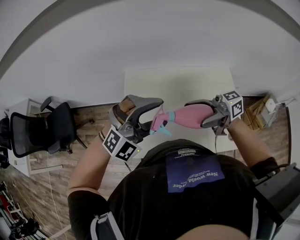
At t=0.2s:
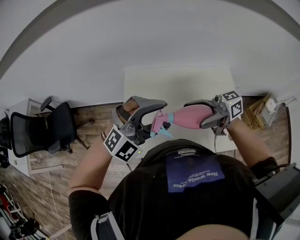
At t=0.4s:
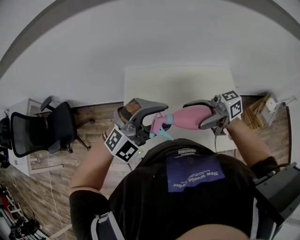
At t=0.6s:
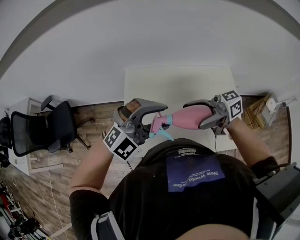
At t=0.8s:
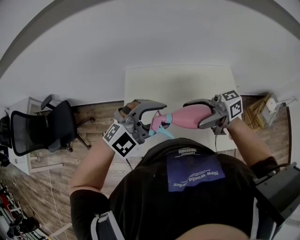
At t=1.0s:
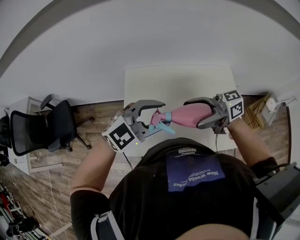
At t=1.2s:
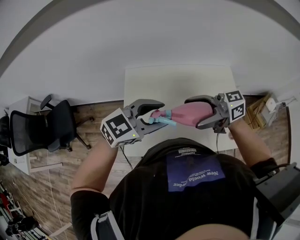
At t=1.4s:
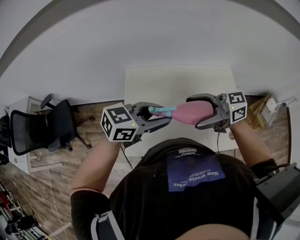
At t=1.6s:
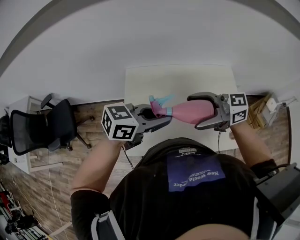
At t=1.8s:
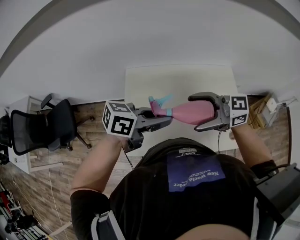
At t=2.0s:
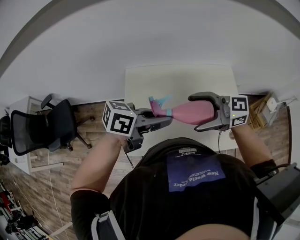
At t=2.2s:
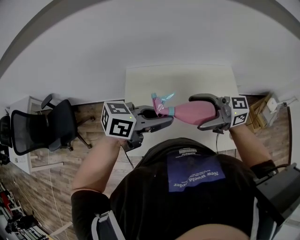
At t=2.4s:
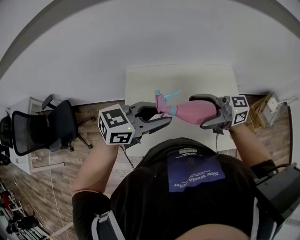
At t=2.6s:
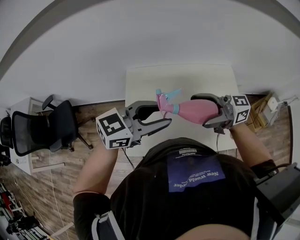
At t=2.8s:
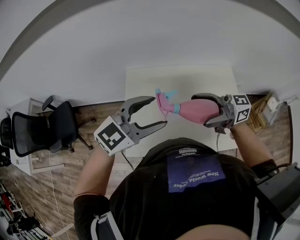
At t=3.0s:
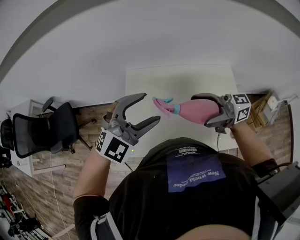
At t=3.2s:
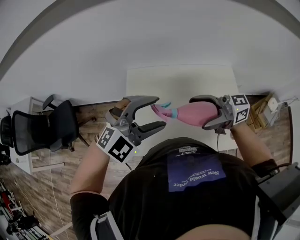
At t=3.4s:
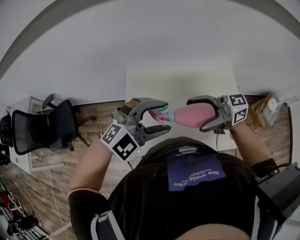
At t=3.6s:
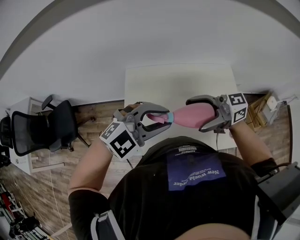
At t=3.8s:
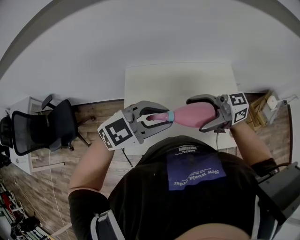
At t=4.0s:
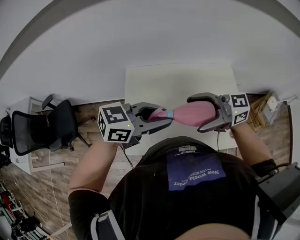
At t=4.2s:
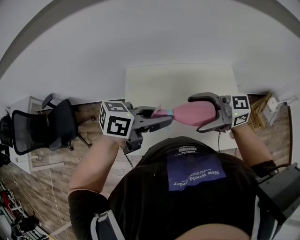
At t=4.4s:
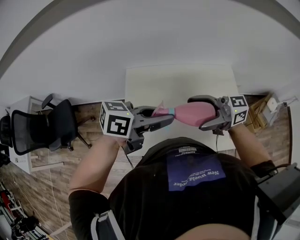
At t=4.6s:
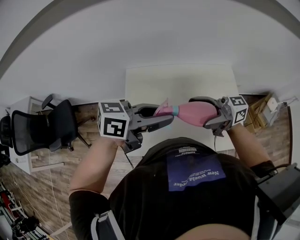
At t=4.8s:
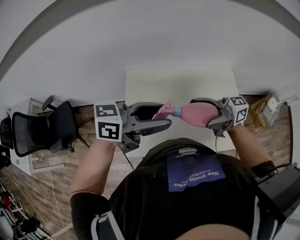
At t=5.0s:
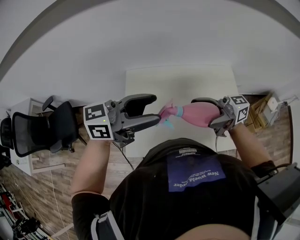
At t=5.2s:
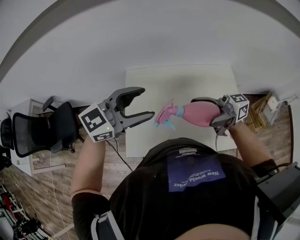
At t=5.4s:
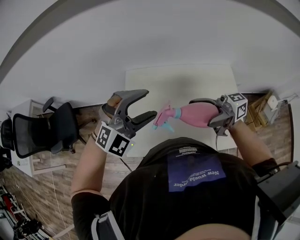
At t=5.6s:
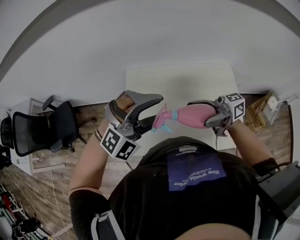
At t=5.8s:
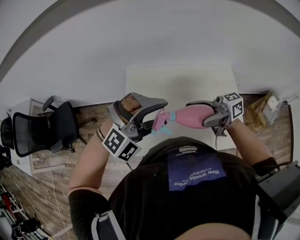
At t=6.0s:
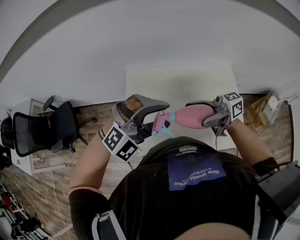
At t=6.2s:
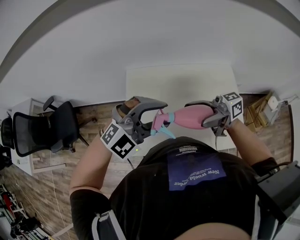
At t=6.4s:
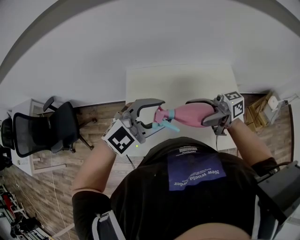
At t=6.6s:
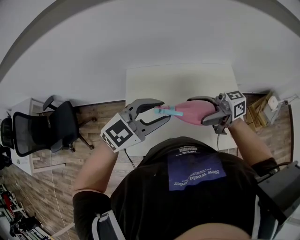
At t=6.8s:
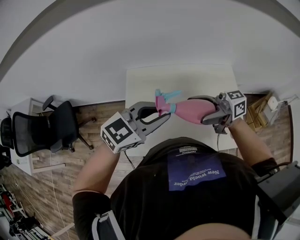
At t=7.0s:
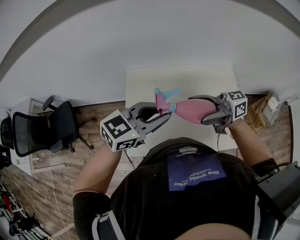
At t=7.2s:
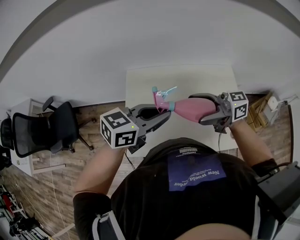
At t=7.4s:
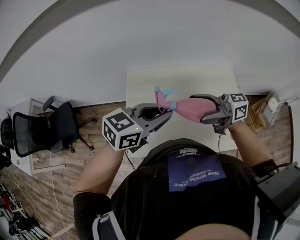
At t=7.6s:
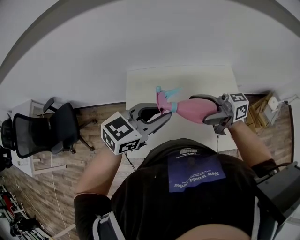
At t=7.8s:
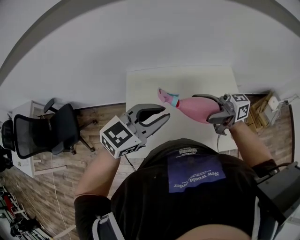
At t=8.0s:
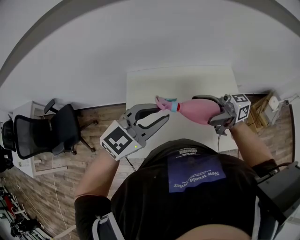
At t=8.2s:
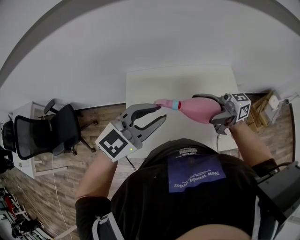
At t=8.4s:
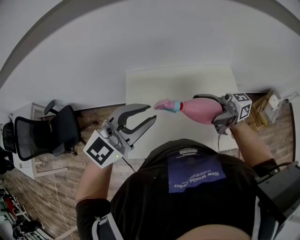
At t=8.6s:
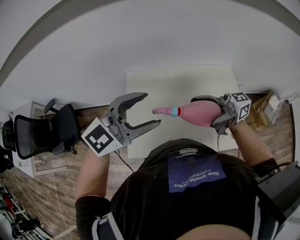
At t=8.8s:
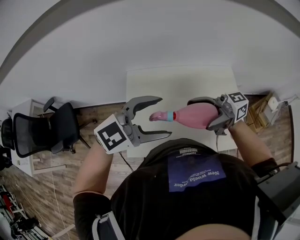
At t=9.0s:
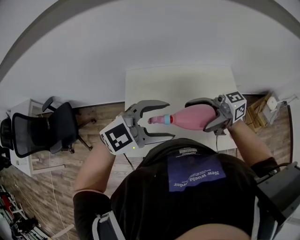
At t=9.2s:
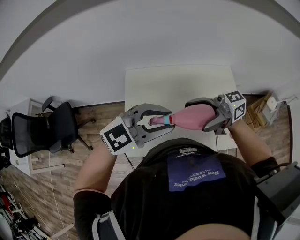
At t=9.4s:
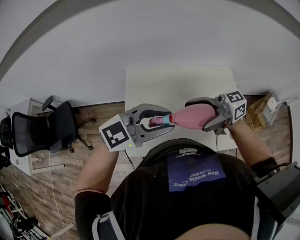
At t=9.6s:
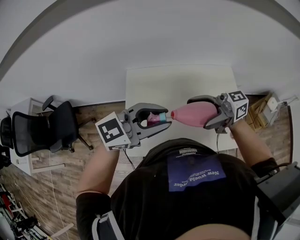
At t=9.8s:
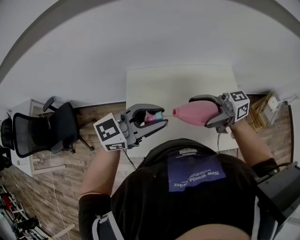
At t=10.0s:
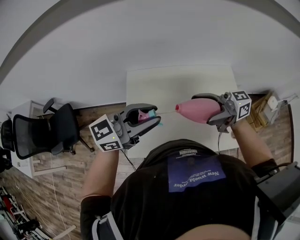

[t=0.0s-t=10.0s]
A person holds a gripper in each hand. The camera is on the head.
t=0.0s to t=1.4s: The left gripper rotates around the line of its fingers by approximately 80 degrees, counterclockwise from behind, and closes up.
t=1.4s to t=2.8s: The left gripper ends up roughly 5 cm from where it was, turns by roughly 30 degrees, and opens.
t=2.8s to t=4.2s: The left gripper twists some 50 degrees counterclockwise, seen from behind, and closes its fingers.
t=4.2s to t=5.8s: The right gripper turns by roughly 30 degrees; the left gripper rotates around the line of its fingers by roughly 100 degrees, clockwise from behind, and opens.
t=5.8s to t=7.2s: The left gripper twists about 90 degrees counterclockwise, seen from behind, and closes up.
t=7.2s to t=8.6s: The left gripper shifts roughly 5 cm upward, turns by approximately 30 degrees, and opens.
t=8.6s to t=10.0s: The left gripper turns by some 30 degrees, and closes up.

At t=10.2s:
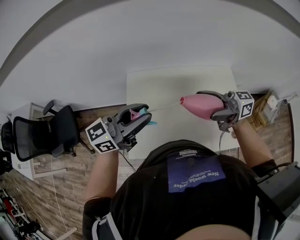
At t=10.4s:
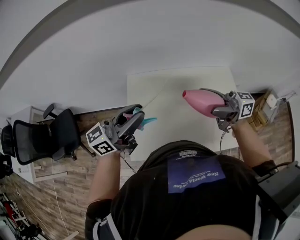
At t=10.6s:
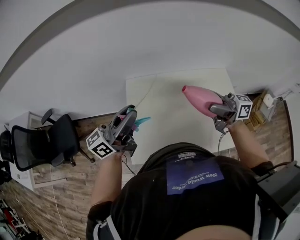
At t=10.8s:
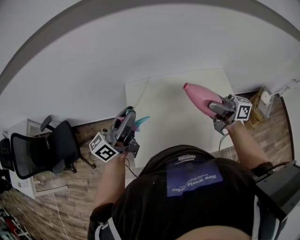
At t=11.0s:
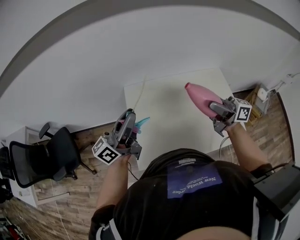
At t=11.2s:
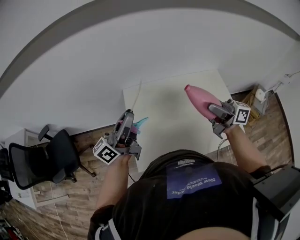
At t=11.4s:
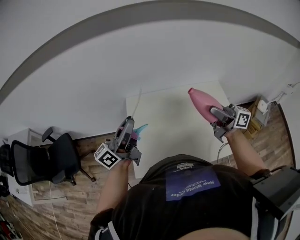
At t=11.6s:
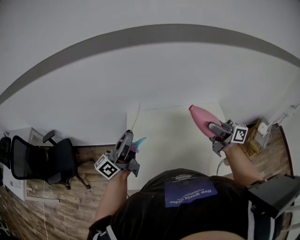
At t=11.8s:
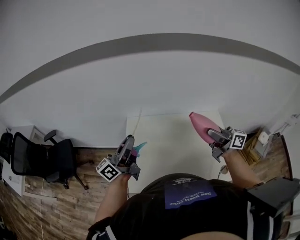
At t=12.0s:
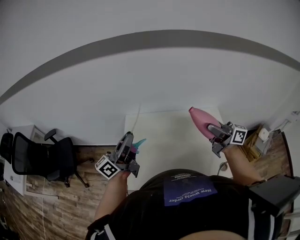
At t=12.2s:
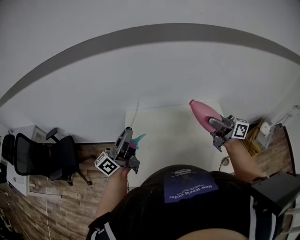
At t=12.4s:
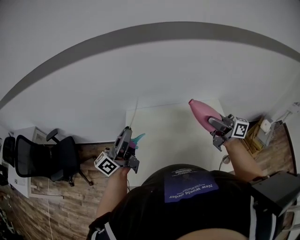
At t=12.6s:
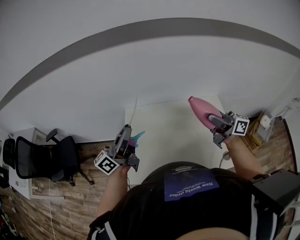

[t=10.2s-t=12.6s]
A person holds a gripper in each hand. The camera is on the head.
t=10.2s to t=11.4s: The left gripper changes place by approximately 10 cm, and turns by roughly 30 degrees. The right gripper changes its angle by roughly 30 degrees.
t=11.4s to t=12.6s: The grippers make only small movements.

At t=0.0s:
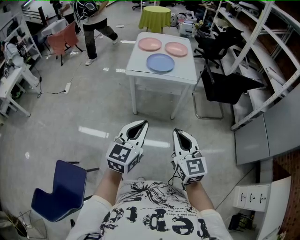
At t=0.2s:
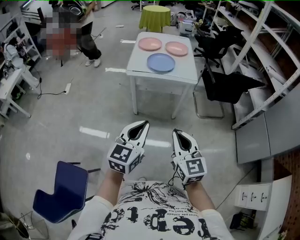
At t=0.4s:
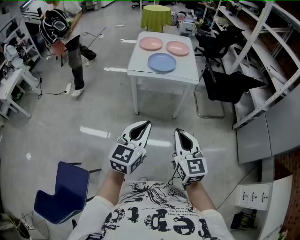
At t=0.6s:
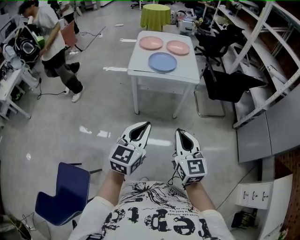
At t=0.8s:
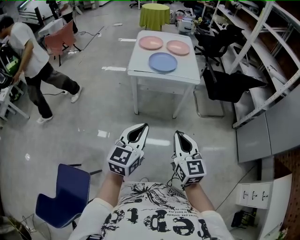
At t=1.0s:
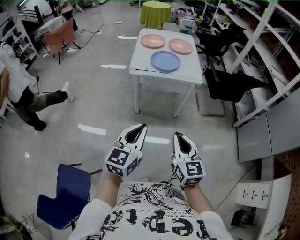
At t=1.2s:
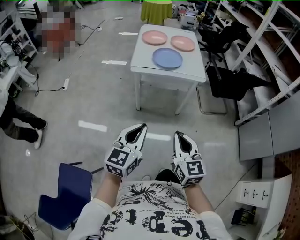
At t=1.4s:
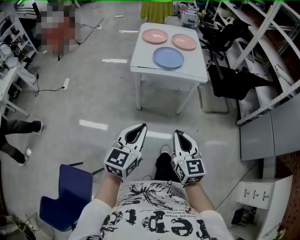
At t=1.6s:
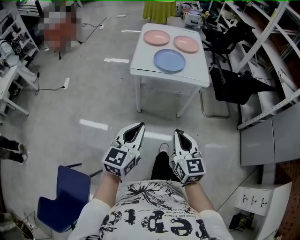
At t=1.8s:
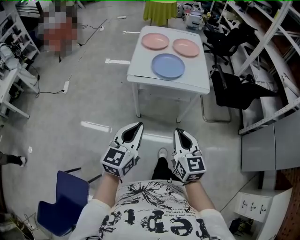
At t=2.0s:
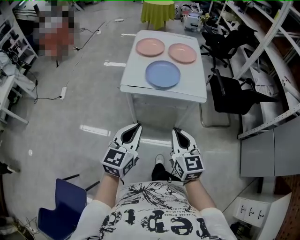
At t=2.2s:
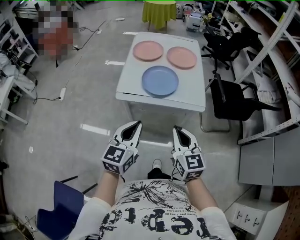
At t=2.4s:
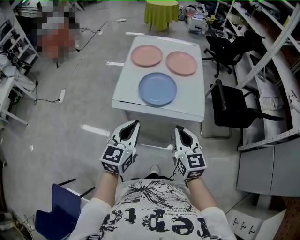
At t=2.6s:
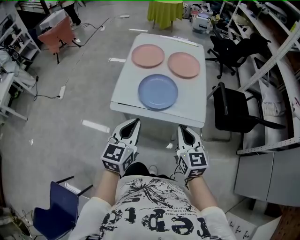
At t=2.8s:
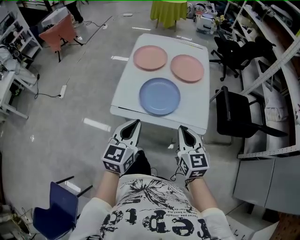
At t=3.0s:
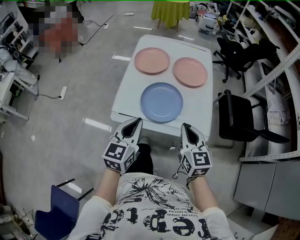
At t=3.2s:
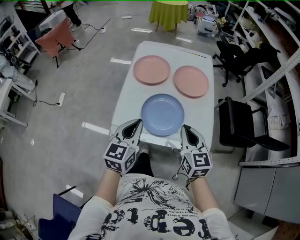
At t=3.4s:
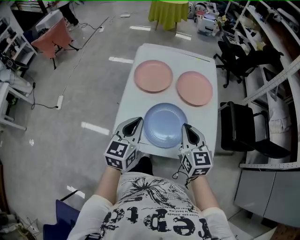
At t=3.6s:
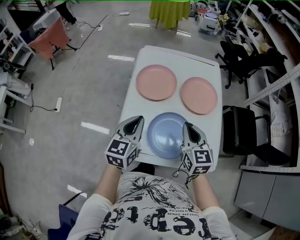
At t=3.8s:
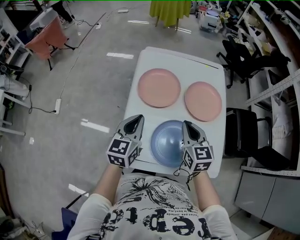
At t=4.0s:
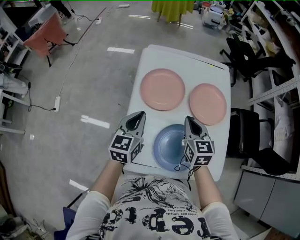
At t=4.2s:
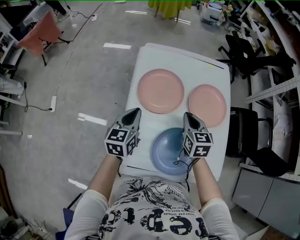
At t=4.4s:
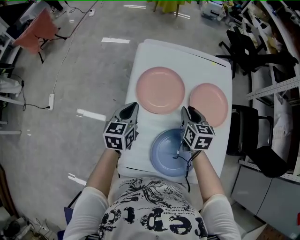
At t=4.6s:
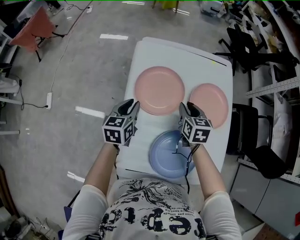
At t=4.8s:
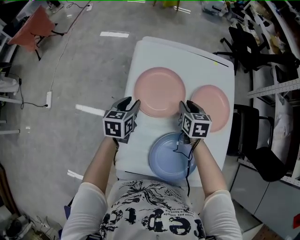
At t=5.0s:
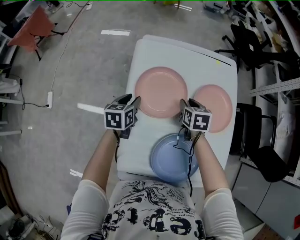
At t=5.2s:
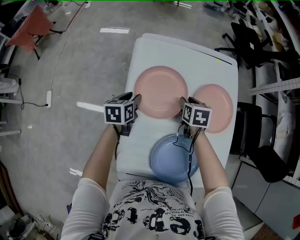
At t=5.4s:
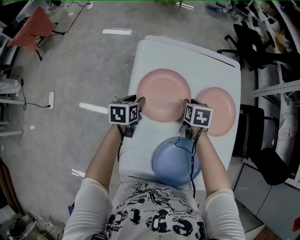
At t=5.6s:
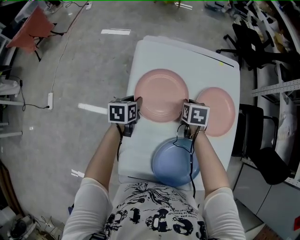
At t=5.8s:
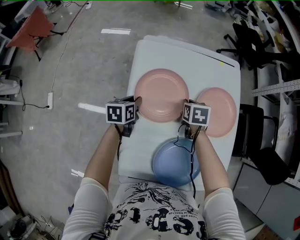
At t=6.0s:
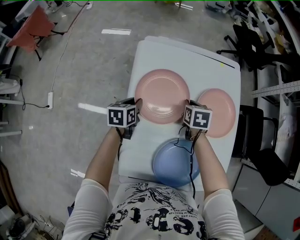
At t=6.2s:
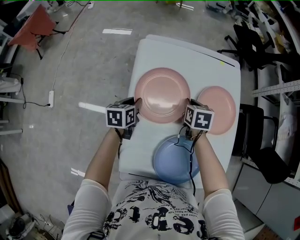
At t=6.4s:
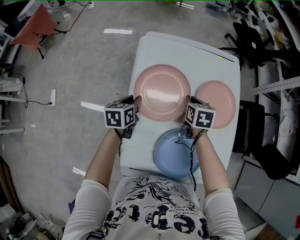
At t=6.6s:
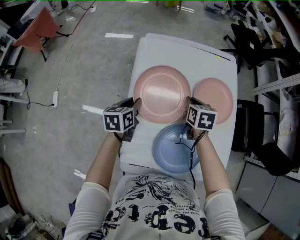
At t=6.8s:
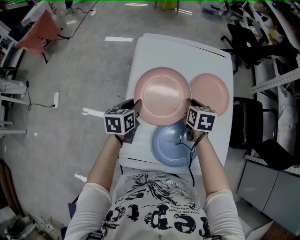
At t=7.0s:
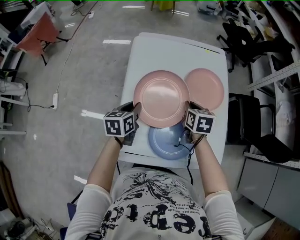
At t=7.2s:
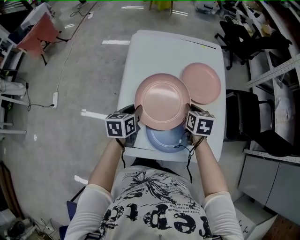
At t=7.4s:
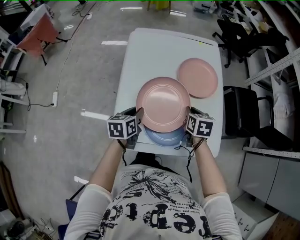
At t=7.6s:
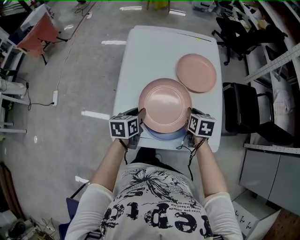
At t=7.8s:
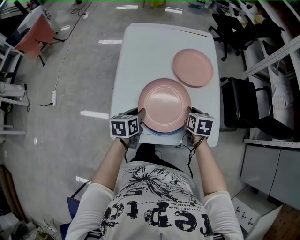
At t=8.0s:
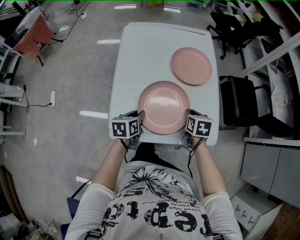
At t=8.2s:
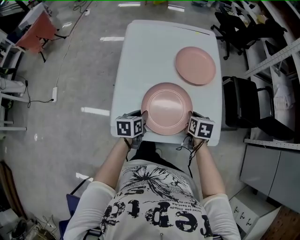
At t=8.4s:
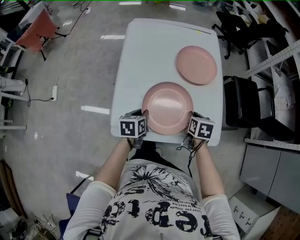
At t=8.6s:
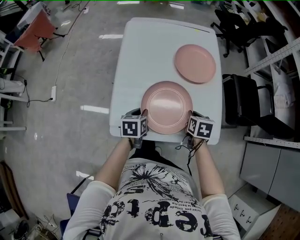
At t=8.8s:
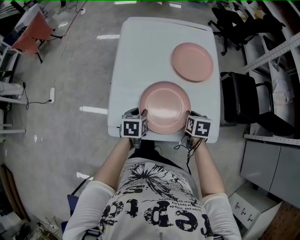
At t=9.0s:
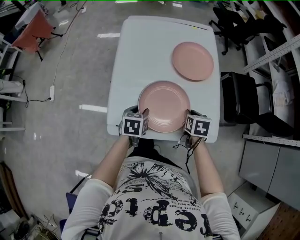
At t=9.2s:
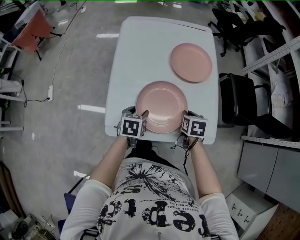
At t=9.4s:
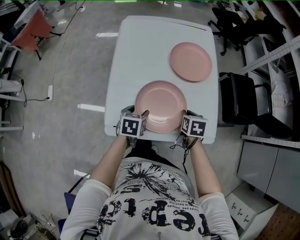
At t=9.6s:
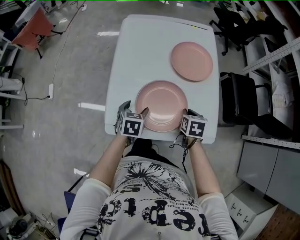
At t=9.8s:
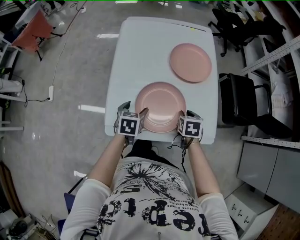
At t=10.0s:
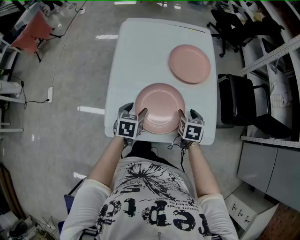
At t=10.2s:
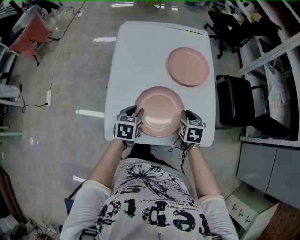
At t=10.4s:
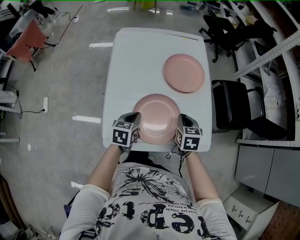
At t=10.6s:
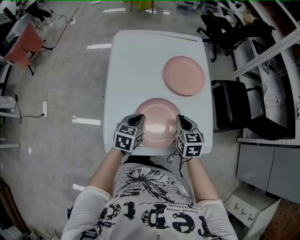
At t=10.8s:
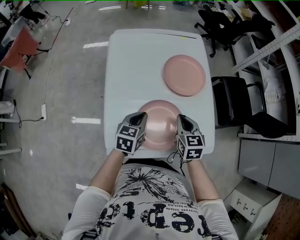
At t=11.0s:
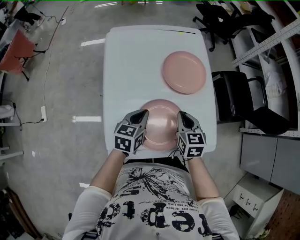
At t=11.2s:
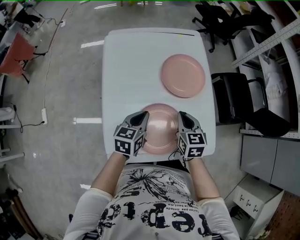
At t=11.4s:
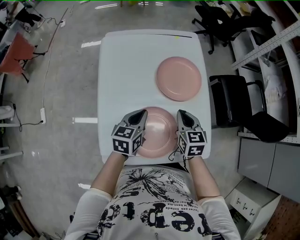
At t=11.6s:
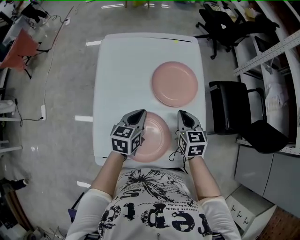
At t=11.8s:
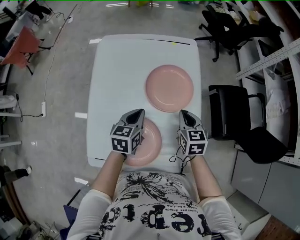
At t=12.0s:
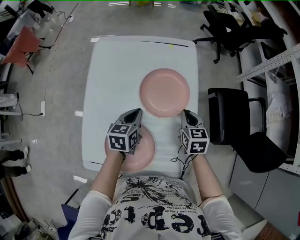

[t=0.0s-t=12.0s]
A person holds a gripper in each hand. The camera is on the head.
t=0.0s to t=1.6s: The right gripper travels forward, downward and to the left by approximately 15 cm. Meanwhile the left gripper heads forward, to the left and downward, covering about 15 cm.
t=1.6s to t=3.0s: The two grippers travel together, forward, about 50 cm.
t=3.0s to t=4.4s: The pair of grippers is taken forward, some 50 cm. The right gripper rotates about 20 degrees.
t=4.4s to t=6.0s: The two grippers go some 15 cm downward and forward. The left gripper rotates about 20 degrees, while the right gripper rotates approximately 20 degrees.
t=6.0s to t=7.6s: Both grippers move backward and to the right, about 35 cm.
t=7.6s to t=9.0s: The left gripper moves roughly 5 cm, while the right gripper shifts by some 10 cm.
t=9.0s to t=10.4s: The left gripper moves some 5 cm, and closes up. The right gripper heads upward, covering some 5 cm, and opens and closes again.
t=10.4s to t=12.0s: The grippers both shift forward and to the right by roughly 25 cm.
